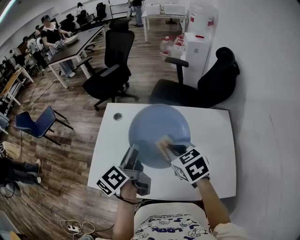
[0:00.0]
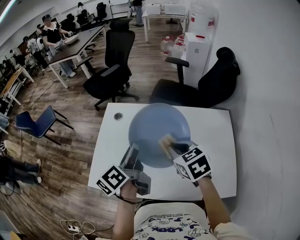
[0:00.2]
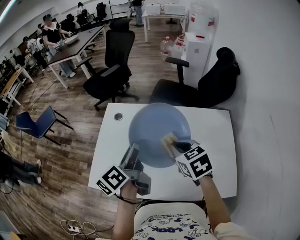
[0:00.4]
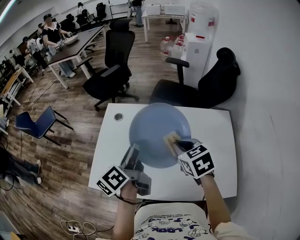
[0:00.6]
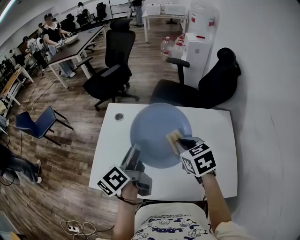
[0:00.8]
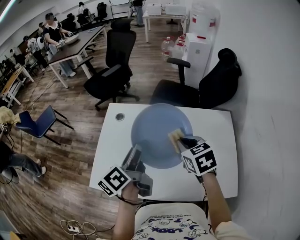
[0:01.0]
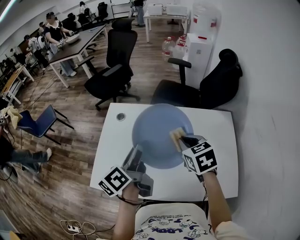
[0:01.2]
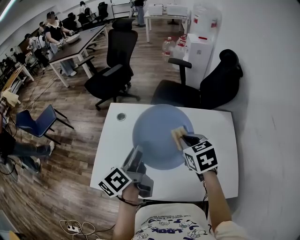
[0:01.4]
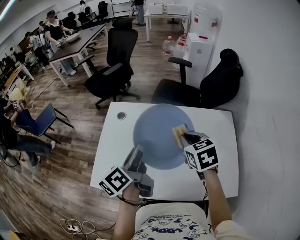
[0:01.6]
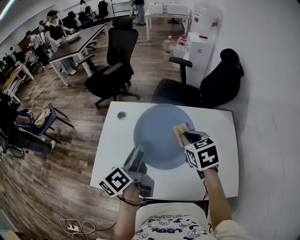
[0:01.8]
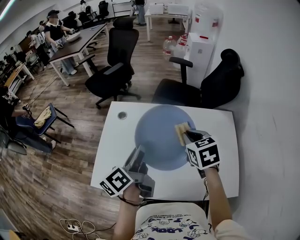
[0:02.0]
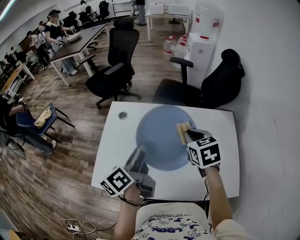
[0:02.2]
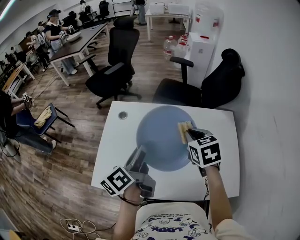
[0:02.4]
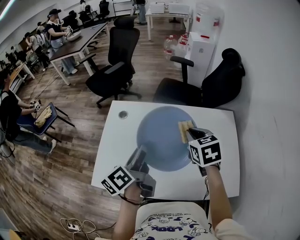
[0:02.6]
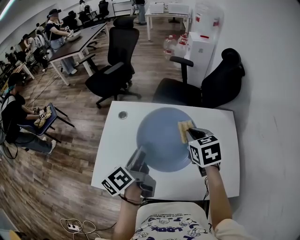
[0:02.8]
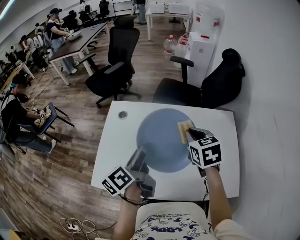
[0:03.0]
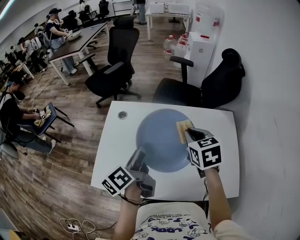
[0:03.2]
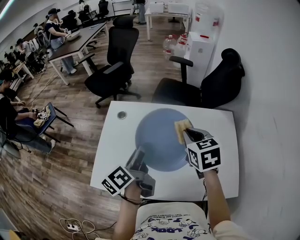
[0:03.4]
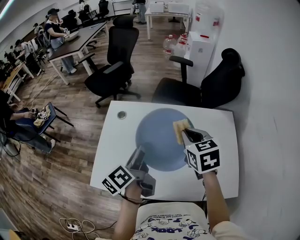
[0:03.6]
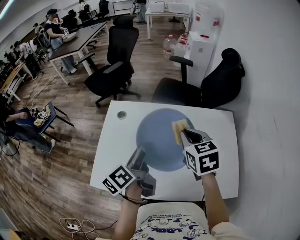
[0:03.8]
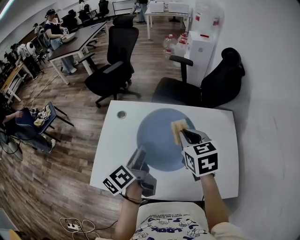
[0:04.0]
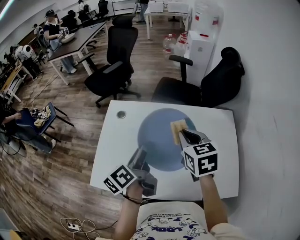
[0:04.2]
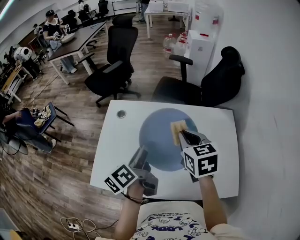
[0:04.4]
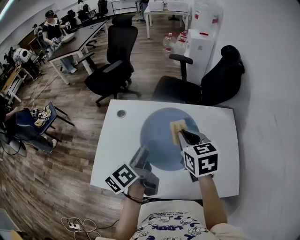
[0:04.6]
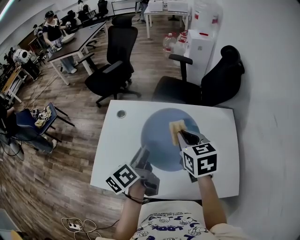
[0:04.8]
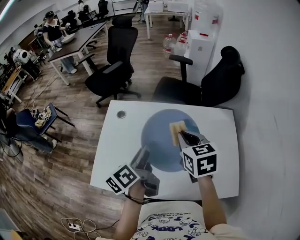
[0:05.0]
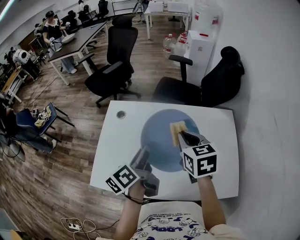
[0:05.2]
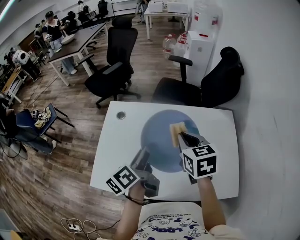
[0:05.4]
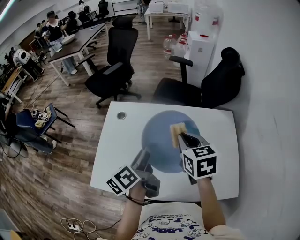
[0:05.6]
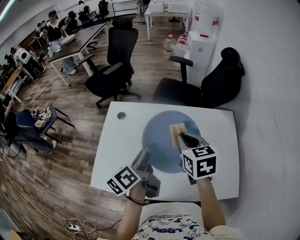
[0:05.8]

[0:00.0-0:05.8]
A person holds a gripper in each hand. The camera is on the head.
0.0 to 1.4 s: The right gripper ends up approximately 5 cm from where it was.
1.4 to 4.4 s: The grippers move only a little.
4.4 to 5.8 s: The two grippers keep their place.

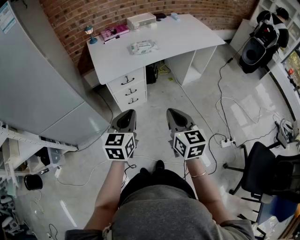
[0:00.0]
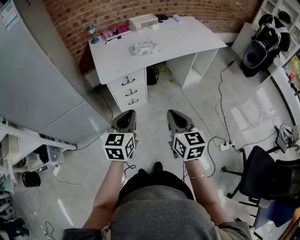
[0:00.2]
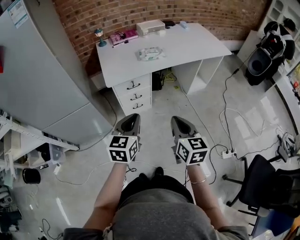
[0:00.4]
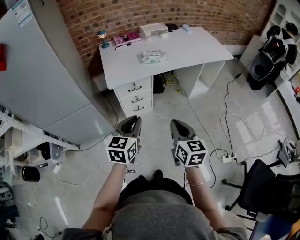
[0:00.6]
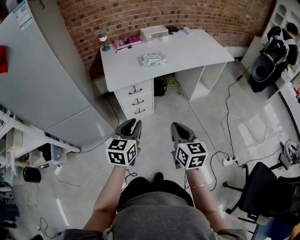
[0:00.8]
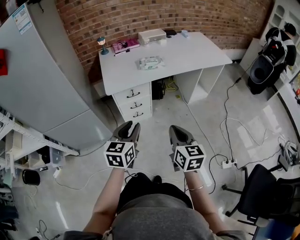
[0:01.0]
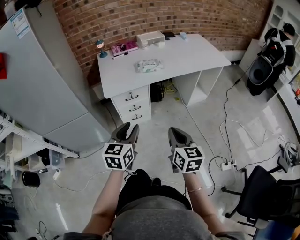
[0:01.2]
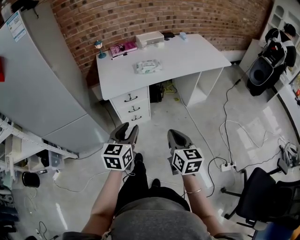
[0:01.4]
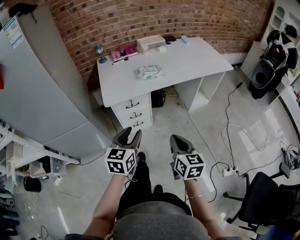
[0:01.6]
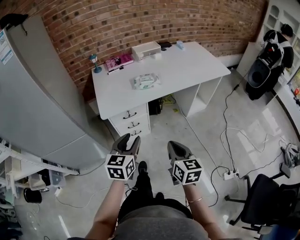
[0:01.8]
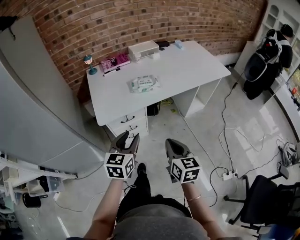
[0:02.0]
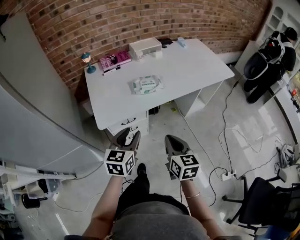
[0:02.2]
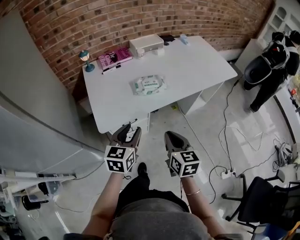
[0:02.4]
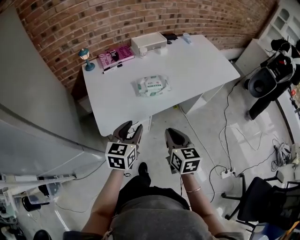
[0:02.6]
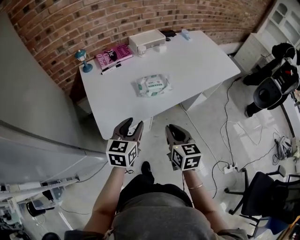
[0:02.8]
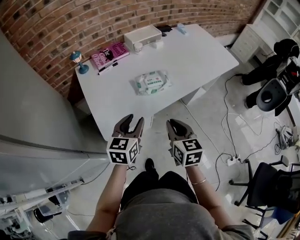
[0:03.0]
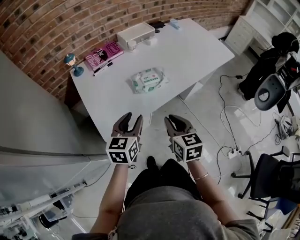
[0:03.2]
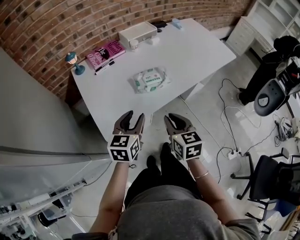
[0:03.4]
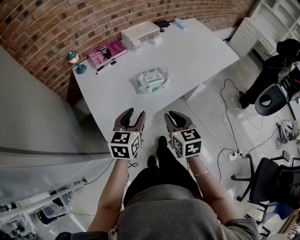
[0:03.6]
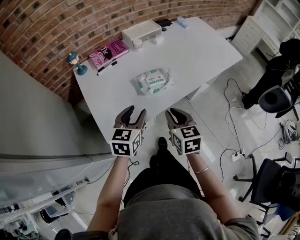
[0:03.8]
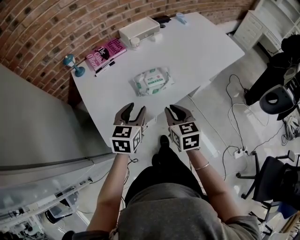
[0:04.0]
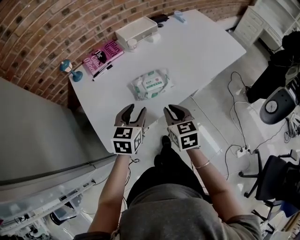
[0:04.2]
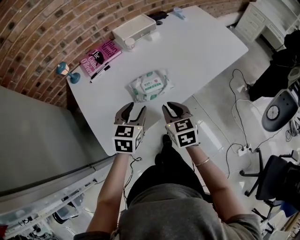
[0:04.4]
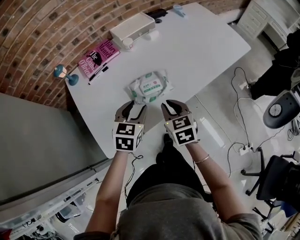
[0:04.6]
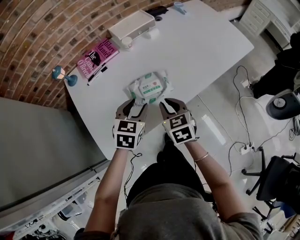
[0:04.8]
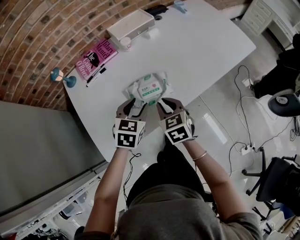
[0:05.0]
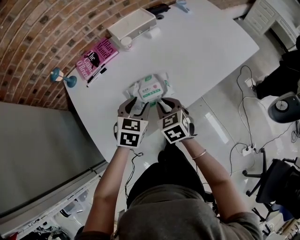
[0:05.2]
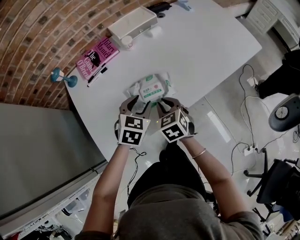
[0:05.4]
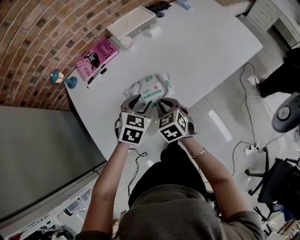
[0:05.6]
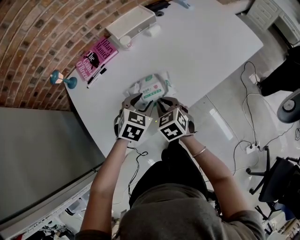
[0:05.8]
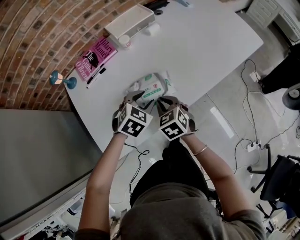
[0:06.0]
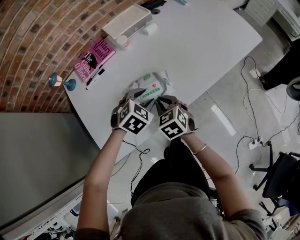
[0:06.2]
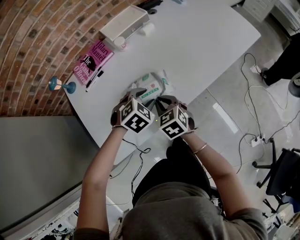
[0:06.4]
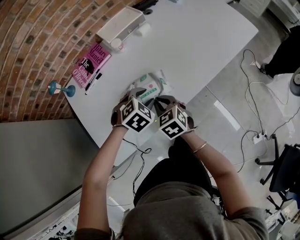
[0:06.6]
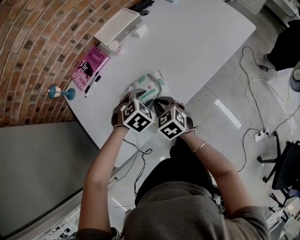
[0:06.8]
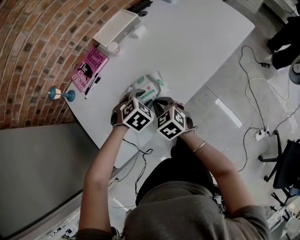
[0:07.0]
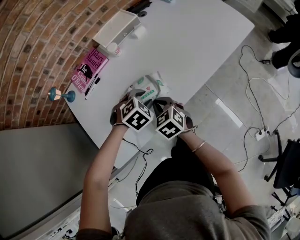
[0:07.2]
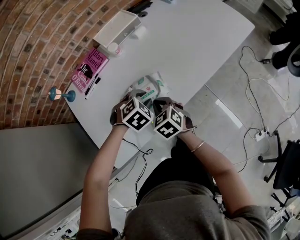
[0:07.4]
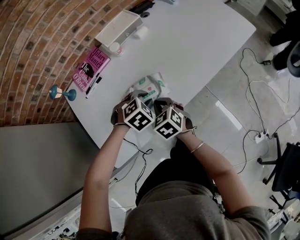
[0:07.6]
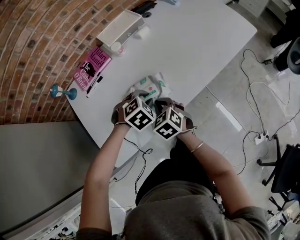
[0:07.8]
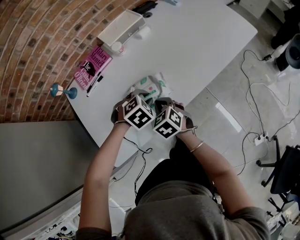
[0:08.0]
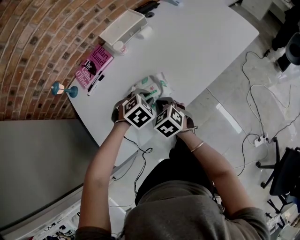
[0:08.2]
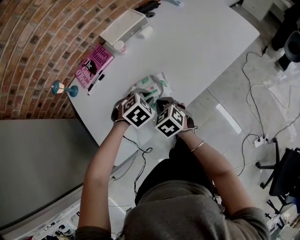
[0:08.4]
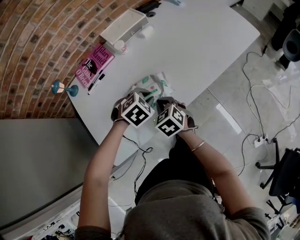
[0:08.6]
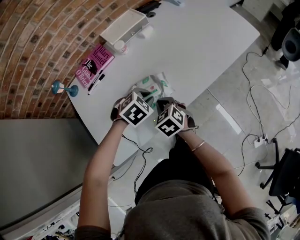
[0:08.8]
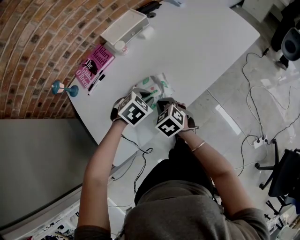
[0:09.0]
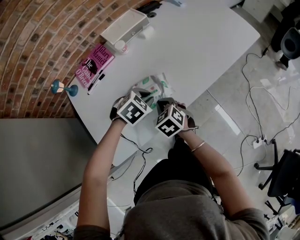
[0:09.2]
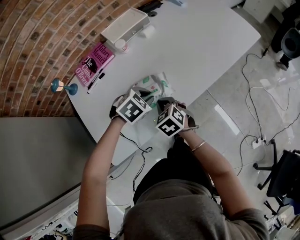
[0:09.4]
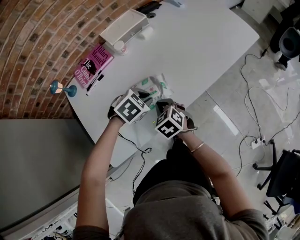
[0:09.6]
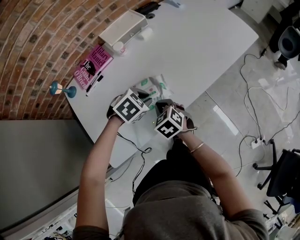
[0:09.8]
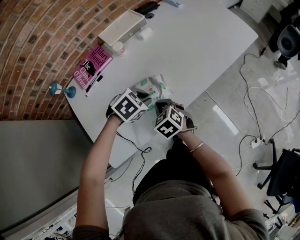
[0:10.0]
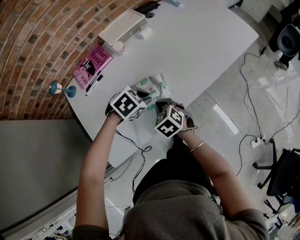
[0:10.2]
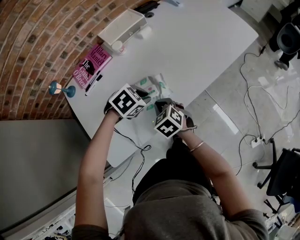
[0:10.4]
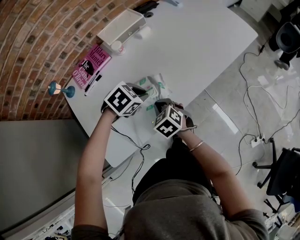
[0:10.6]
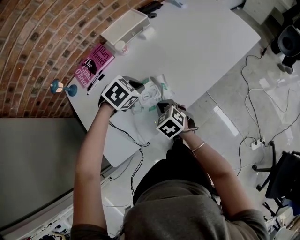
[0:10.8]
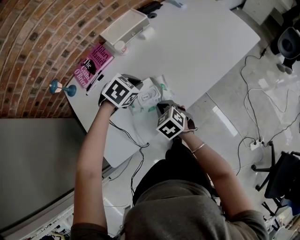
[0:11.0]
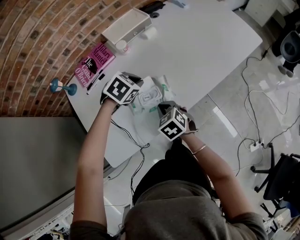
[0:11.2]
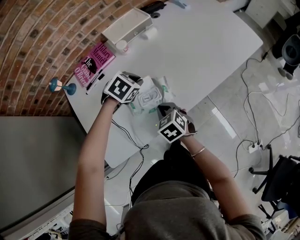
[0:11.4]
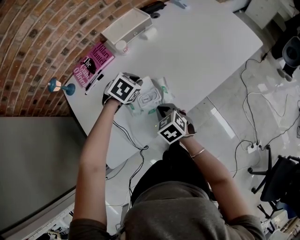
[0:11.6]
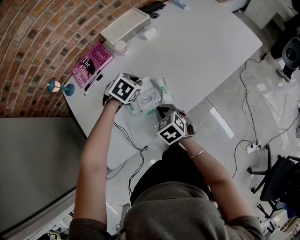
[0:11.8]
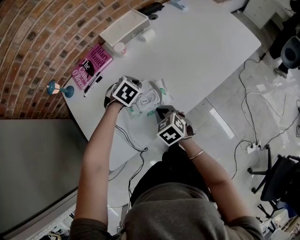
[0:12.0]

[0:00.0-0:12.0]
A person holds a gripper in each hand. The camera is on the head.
0.0 to 1.6 s: The left gripper goes about 5 cm forward, and opens up. The right gripper shifts by approximately 10 cm.
1.6 to 3.0 s: The left gripper moves forward, roughly 30 cm; the right gripper goes roughly 30 cm forward and to the left.
3.0 to 4.4 s: The two grippers go approximately 15 cm forward.
4.4 to 6.0 s: The right gripper moves forward and downward, roughly 10 cm; the left gripper goes about 10 cm forward, downward and to the right, and changes its angle by approximately 30 degrees.
6.0 to 7.6 s: The left gripper swivels some 20 degrees.
7.6 to 9.0 s: The grippers make only small movements.
9.0 to 10.4 s: There are only small adjustments of the grippers.
10.4 to 12.0 s: The left gripper goes approximately 10 cm forward.

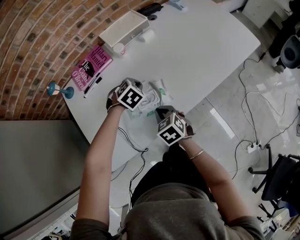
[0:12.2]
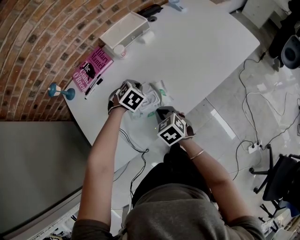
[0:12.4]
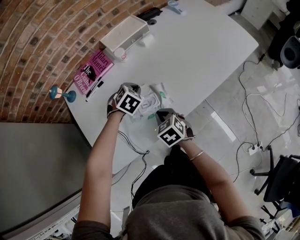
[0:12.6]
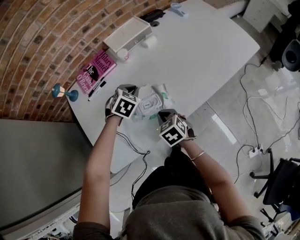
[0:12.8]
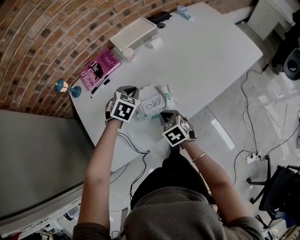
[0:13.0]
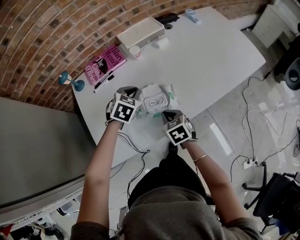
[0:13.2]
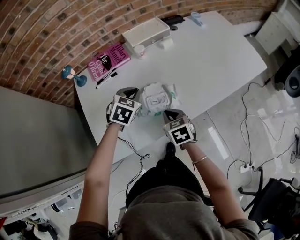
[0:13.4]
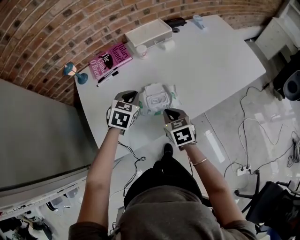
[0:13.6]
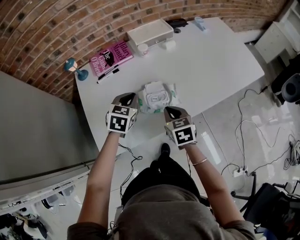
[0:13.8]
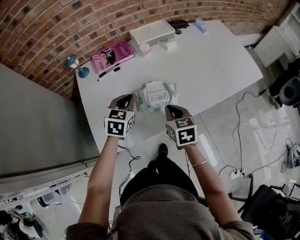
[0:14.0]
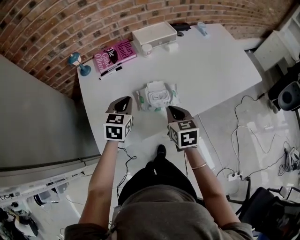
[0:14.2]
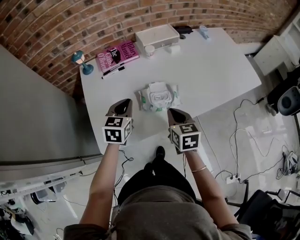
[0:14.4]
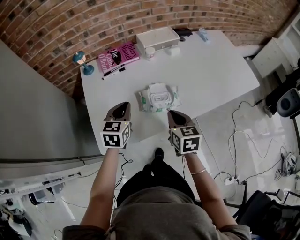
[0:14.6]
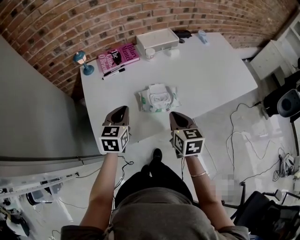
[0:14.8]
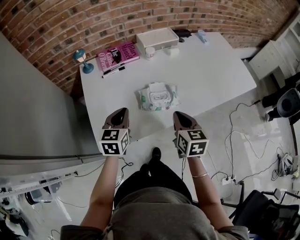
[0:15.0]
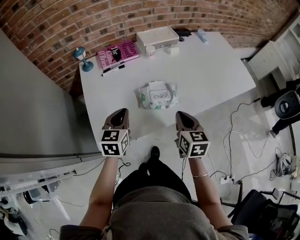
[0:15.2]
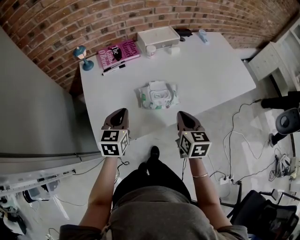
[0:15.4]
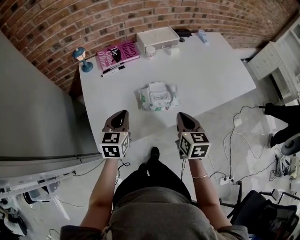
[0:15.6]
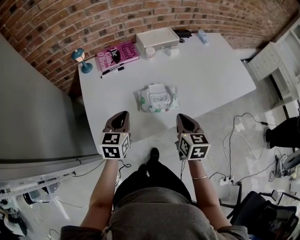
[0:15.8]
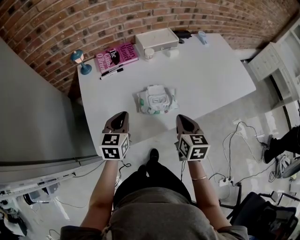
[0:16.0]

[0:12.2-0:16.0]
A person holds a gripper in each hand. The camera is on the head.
12.2 to 13.4 s: The left gripper shifts approximately 10 cm upward and to the left, and rotates some 30 degrees.
13.4 to 14.8 s: The right gripper moves upward, about 10 cm, while the left gripper moves backward and to the left, approximately 15 cm, and changes its angle by roughly 30 degrees.
14.8 to 16.0 s: The grippers stay close to where they were, moving slightly.

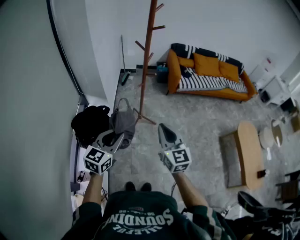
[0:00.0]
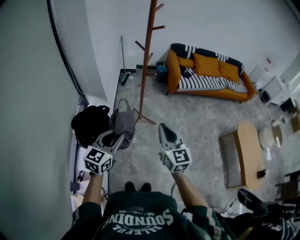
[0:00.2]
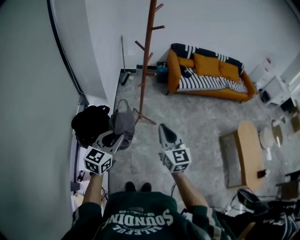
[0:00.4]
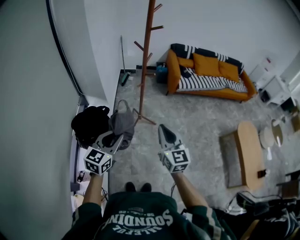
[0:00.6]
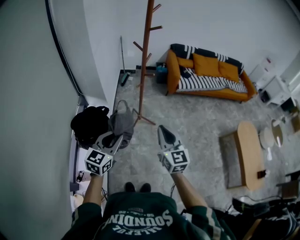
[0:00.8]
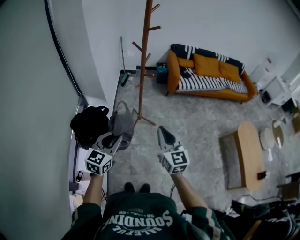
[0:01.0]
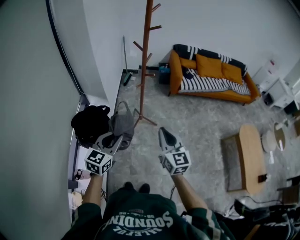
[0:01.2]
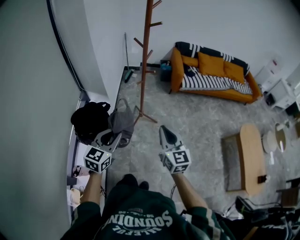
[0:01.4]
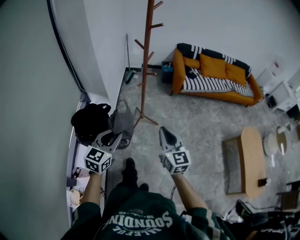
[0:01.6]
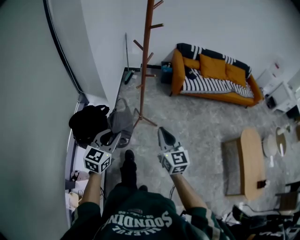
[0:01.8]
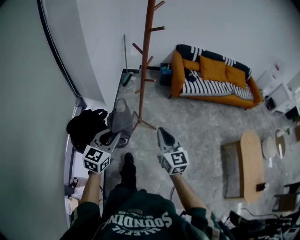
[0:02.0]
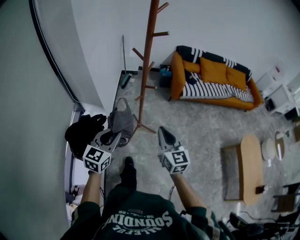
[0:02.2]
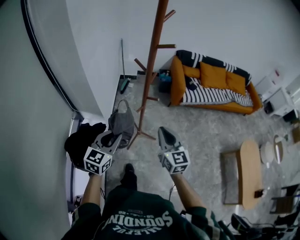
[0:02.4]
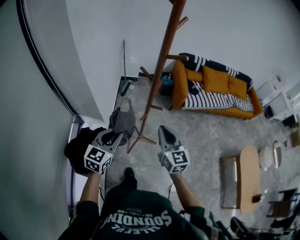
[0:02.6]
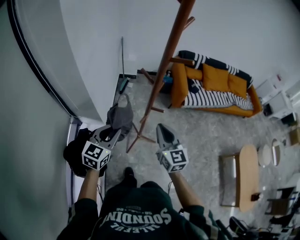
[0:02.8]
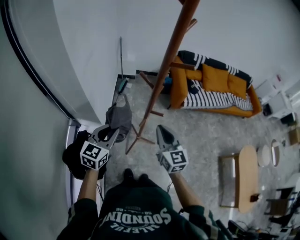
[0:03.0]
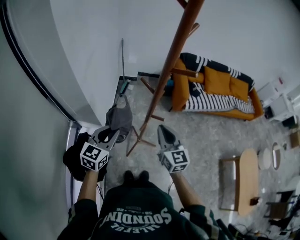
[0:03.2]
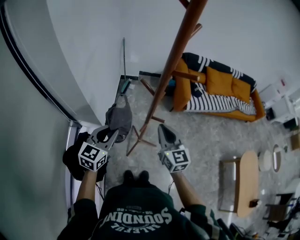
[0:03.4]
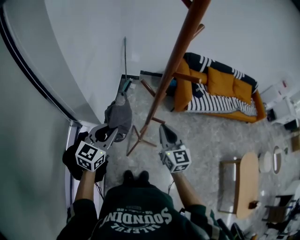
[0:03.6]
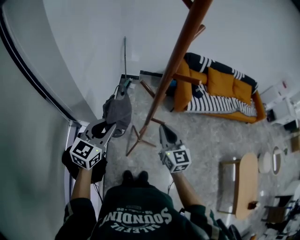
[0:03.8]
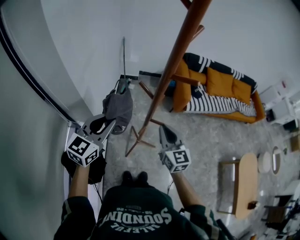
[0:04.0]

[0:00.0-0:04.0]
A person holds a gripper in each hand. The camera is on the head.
0.0 to 1.4 s: The right gripper changes place by about 5 cm.
1.4 to 2.6 s: The grippers both shift forward by roughly 30 cm.
2.6 to 4.0 s: The right gripper shifts some 10 cm forward, while the left gripper heads forward and upward, covering roughly 15 cm.
